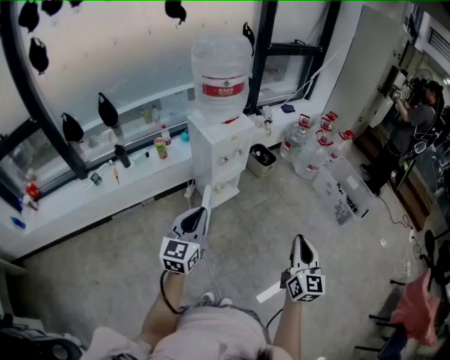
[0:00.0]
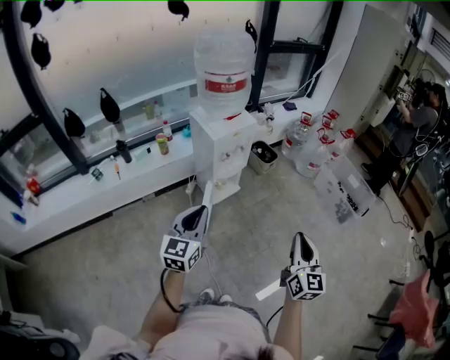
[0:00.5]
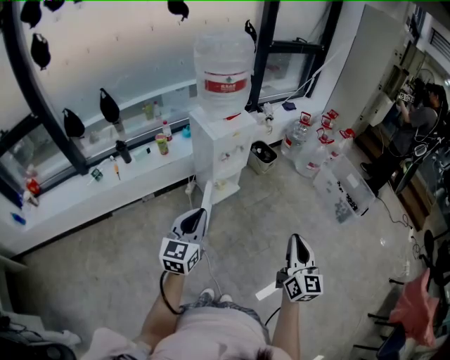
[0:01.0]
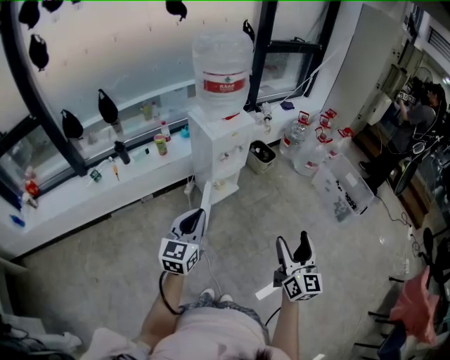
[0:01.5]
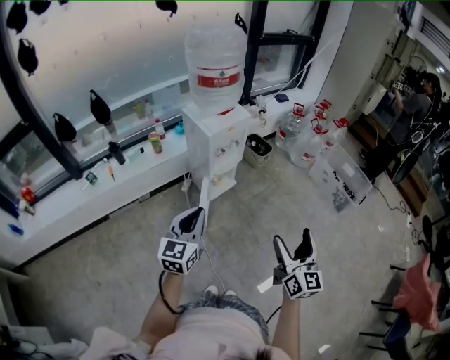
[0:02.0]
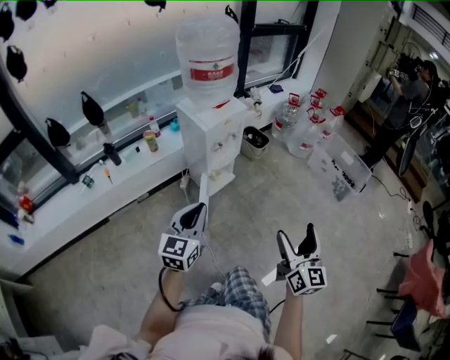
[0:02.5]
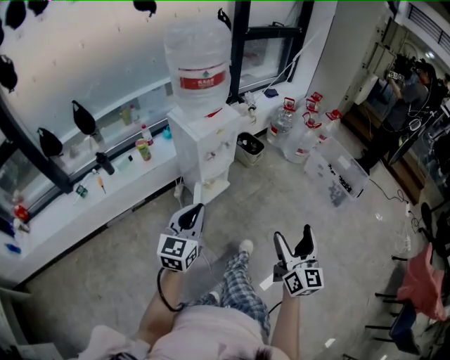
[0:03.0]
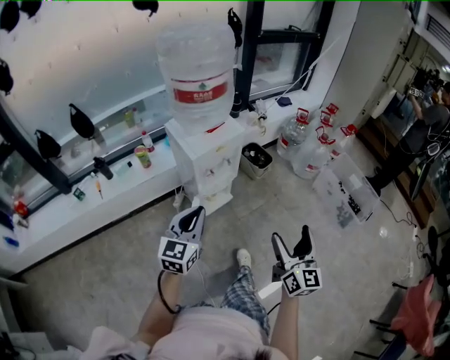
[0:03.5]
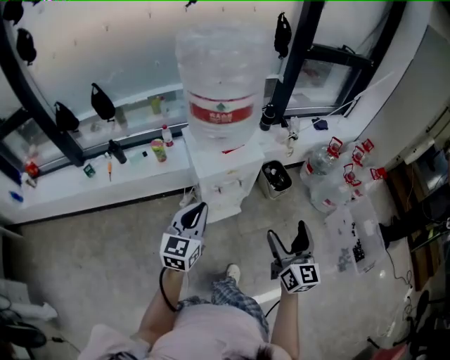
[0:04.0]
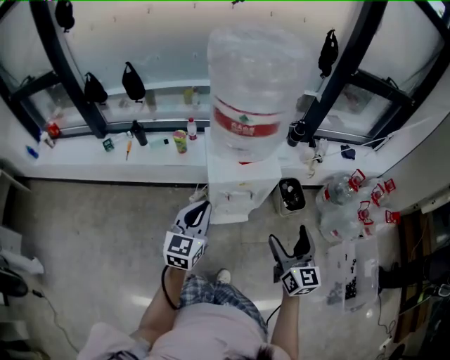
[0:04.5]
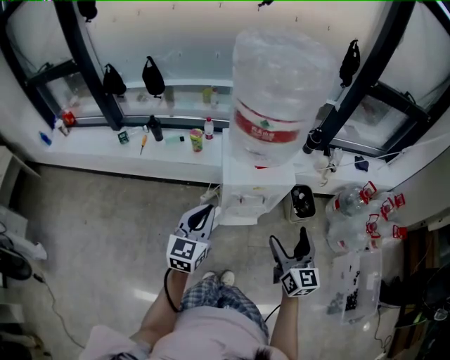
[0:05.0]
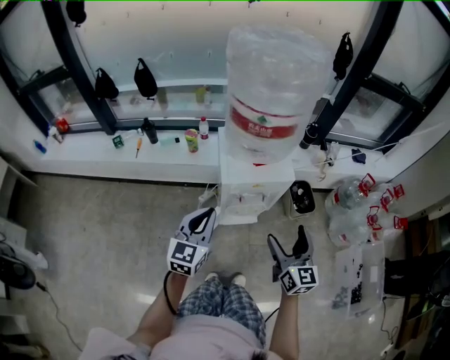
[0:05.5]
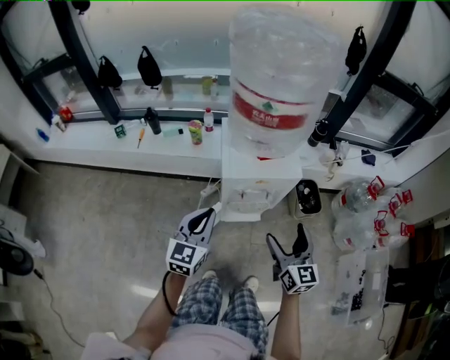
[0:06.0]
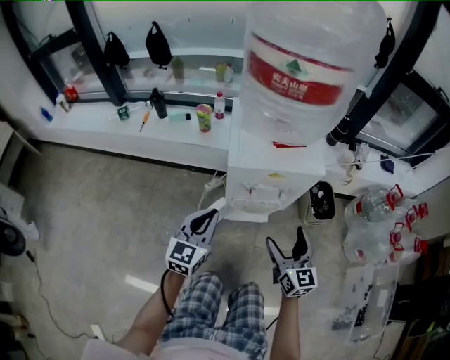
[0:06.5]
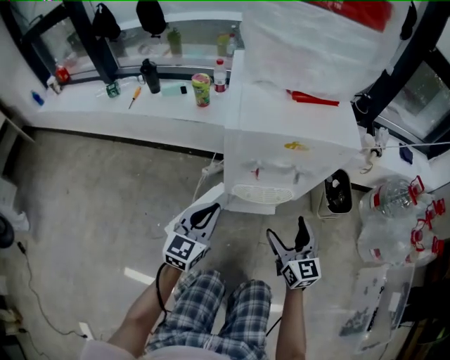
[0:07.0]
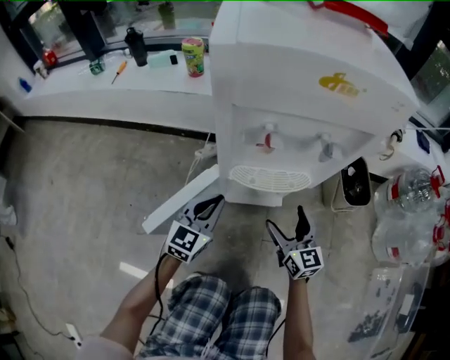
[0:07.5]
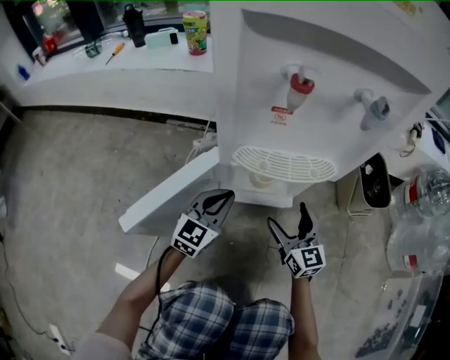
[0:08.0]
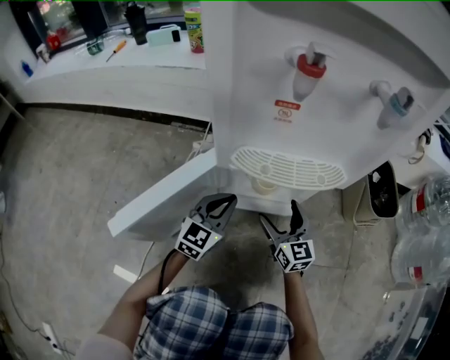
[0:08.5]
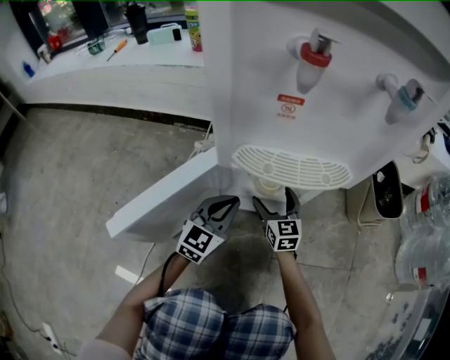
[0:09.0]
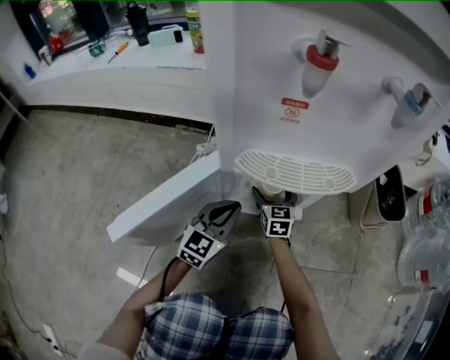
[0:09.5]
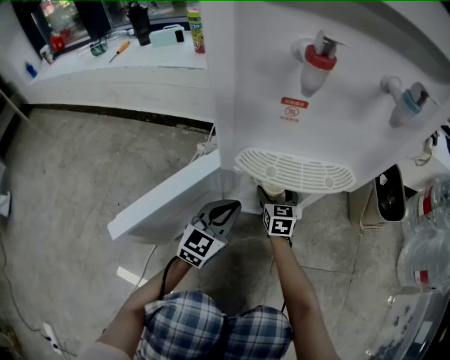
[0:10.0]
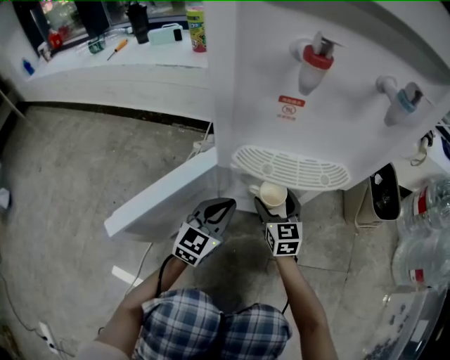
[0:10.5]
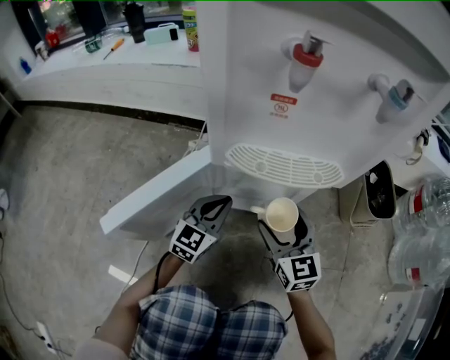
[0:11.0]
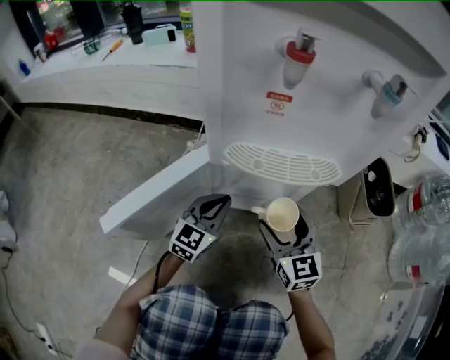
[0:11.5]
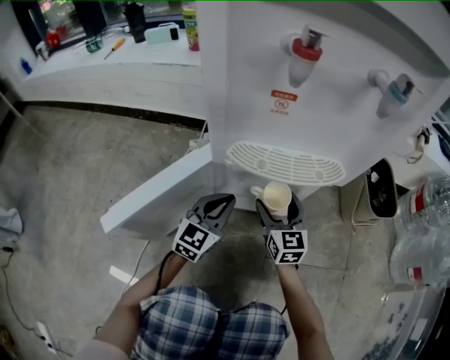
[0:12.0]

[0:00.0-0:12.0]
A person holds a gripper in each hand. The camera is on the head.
0:00.0 to 0:02.0: The right gripper changes place by about 5 cm, and opens its fingers.
0:02.0 to 0:04.0: Both grippers travel together forward, some 40 cm. The right gripper rotates about 20 degrees.
0:04.0 to 0:06.0: The right gripper travels forward and downward by roughly 15 cm, and changes its angle by some 20 degrees; the left gripper is displaced downward by roughly 10 cm.
0:06.0 to 0:08.0: The grippers both shift downward by roughly 60 cm.
0:08.0 to 0:10.0: The left gripper travels downward by roughly 5 cm, while the right gripper shifts roughly 20 cm forward, downward and to the left.
0:10.0 to 0:12.0: The right gripper is displaced upward and backward by roughly 10 cm.

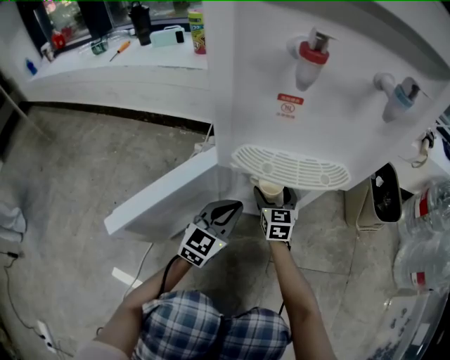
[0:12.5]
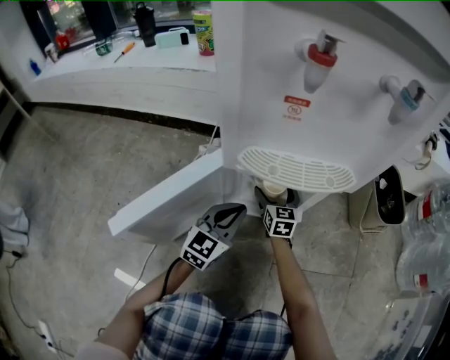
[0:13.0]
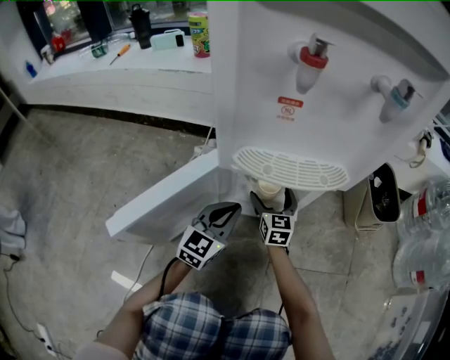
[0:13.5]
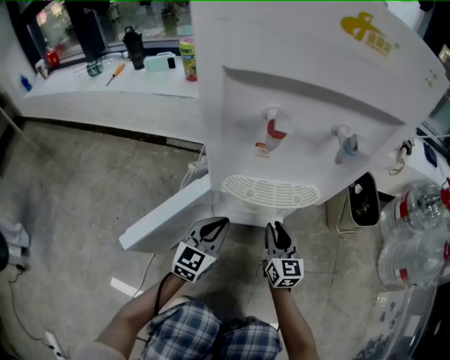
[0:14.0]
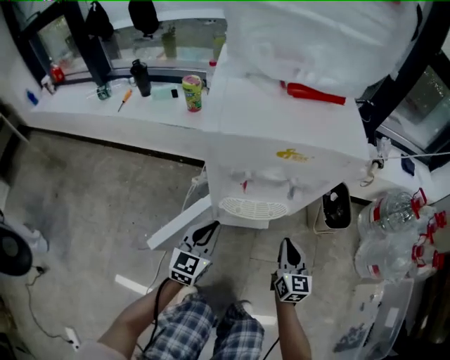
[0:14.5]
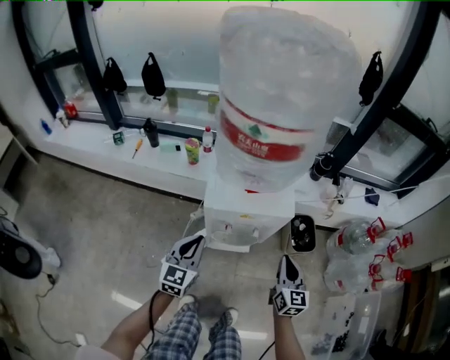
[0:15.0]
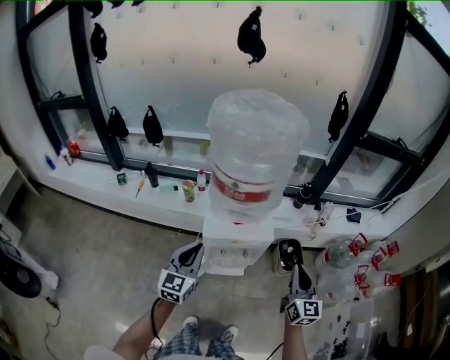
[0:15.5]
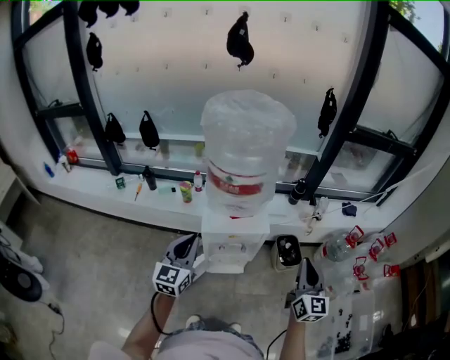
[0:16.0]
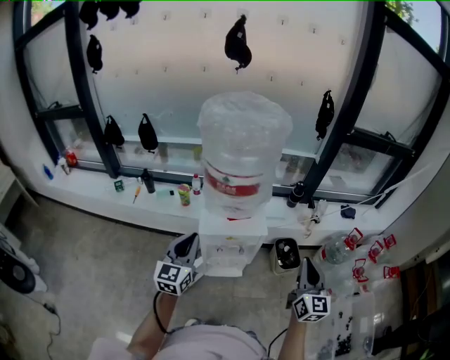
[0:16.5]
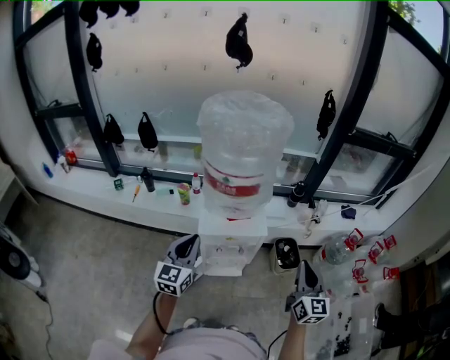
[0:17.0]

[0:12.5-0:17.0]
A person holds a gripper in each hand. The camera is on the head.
0:12.5 to 0:14.5: The left gripper shifts about 30 cm upward. The right gripper is displaced upward and backward by approximately 35 cm, and closes up.
0:14.5 to 0:17.0: Both grippers move upward, roughly 60 cm.

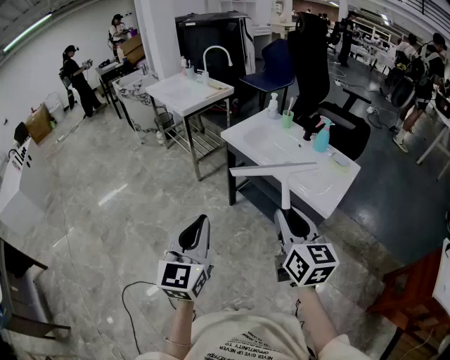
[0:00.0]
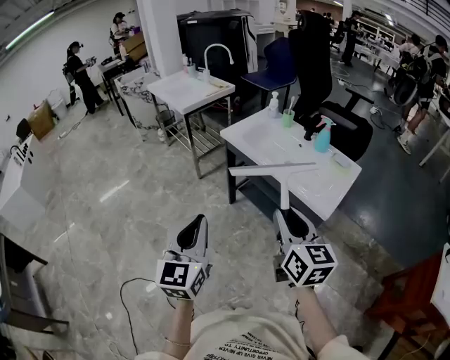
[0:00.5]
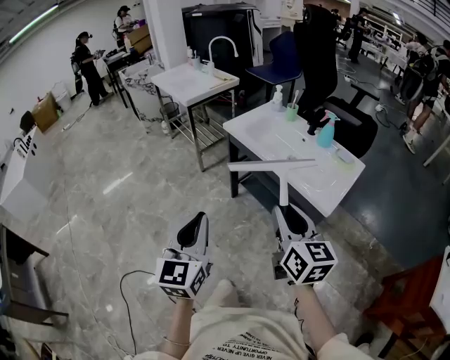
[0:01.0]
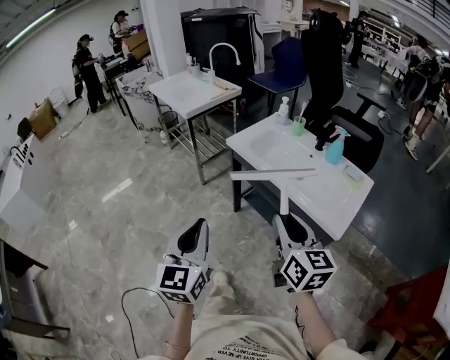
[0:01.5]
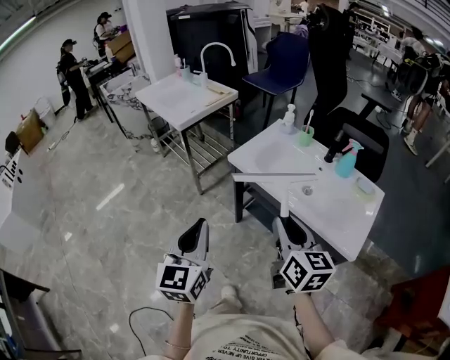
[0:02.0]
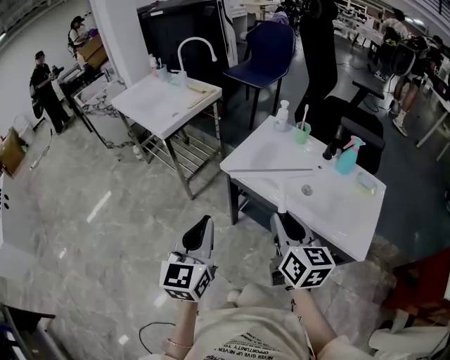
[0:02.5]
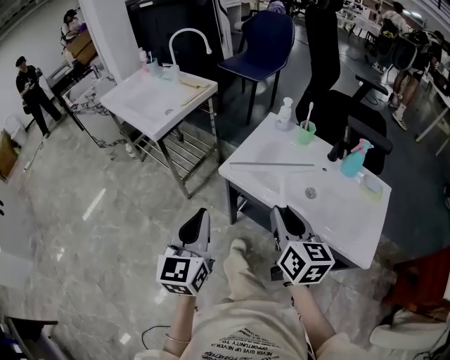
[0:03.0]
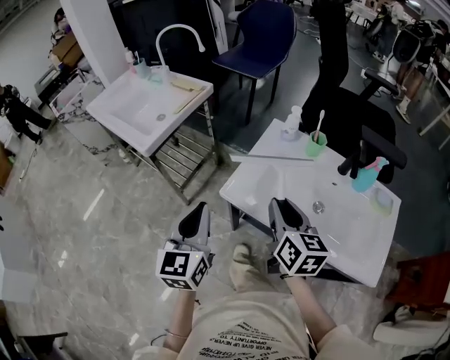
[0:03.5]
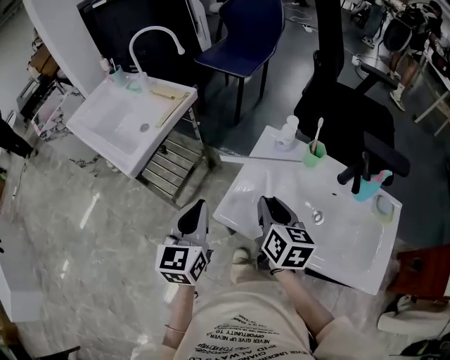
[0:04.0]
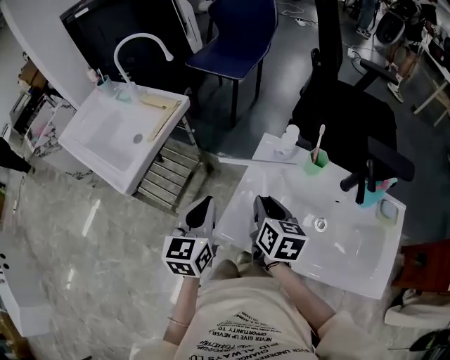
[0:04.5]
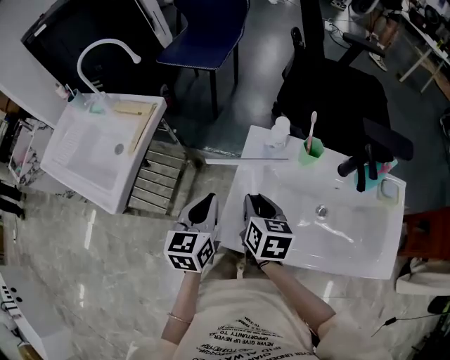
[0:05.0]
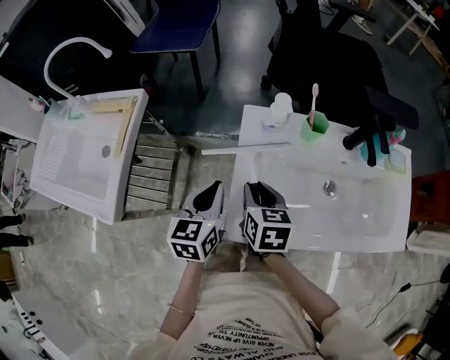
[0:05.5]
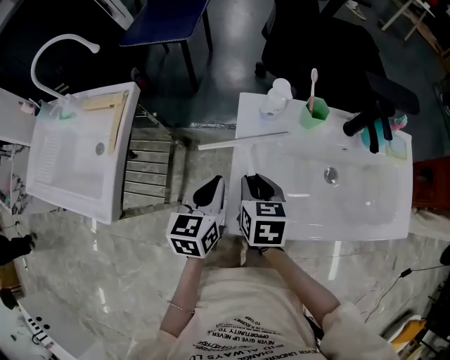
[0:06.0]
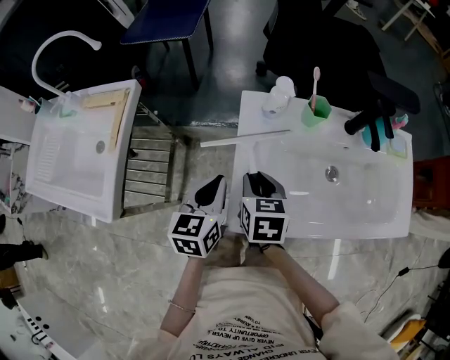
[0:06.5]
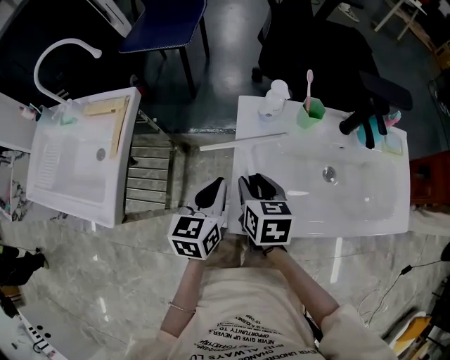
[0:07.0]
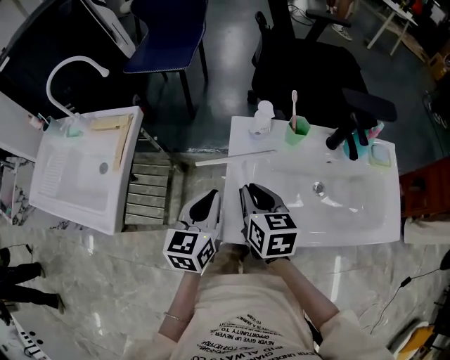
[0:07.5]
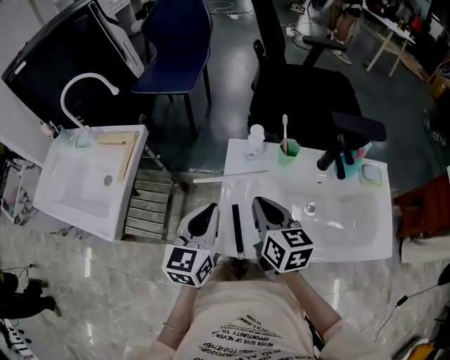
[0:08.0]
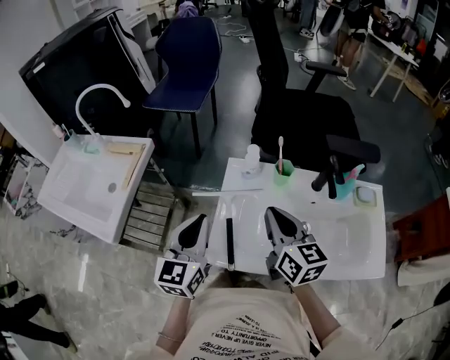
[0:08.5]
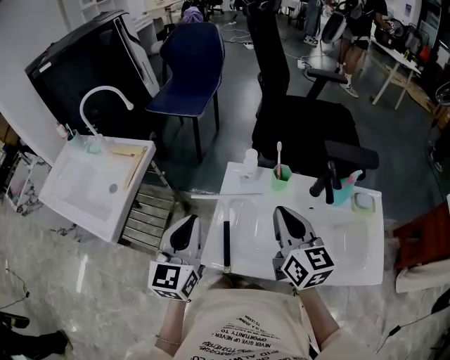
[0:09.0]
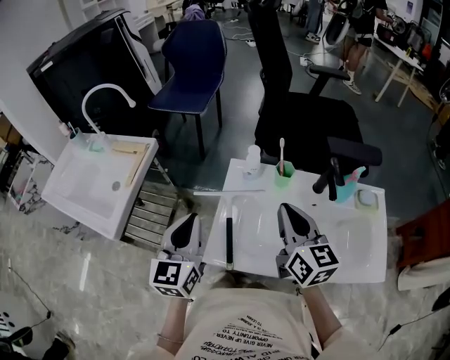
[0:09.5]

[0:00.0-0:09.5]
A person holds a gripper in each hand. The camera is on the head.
0:00.0 to 0:02.0: Both grippers travel together forward, roughly 20 cm.
0:02.0 to 0:04.0: Both grippers travel together forward, about 35 cm. The right gripper rotates about 20 degrees.
0:04.0 to 0:05.5: The right gripper moves downward and forward, approximately 10 cm, and turns by approximately 20 degrees, while the left gripper moves forward and downward, approximately 15 cm, and changes its angle by some 30 degrees.
0:05.5 to 0:07.5: The right gripper shifts approximately 5 cm upward.
0:07.5 to 0:09.5: The right gripper is displaced to the right and upward by roughly 15 cm, and rotates roughly 20 degrees; the left gripper heads upward, covering about 10 cm, and changes its angle by roughly 20 degrees.

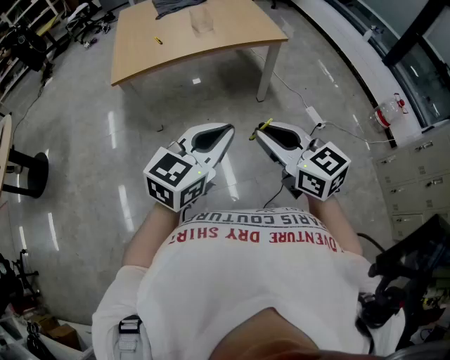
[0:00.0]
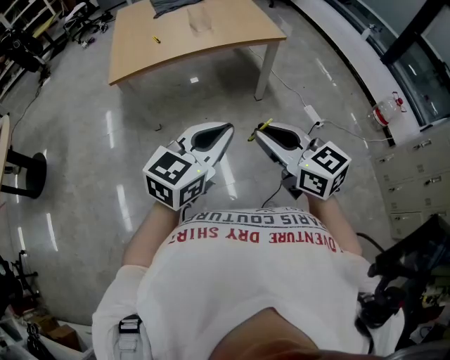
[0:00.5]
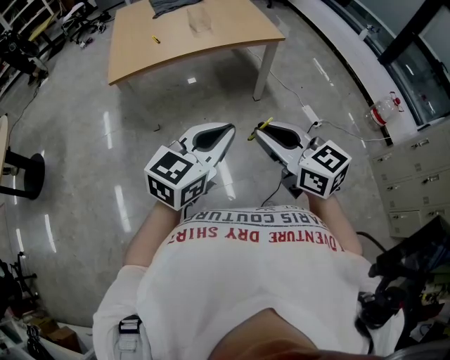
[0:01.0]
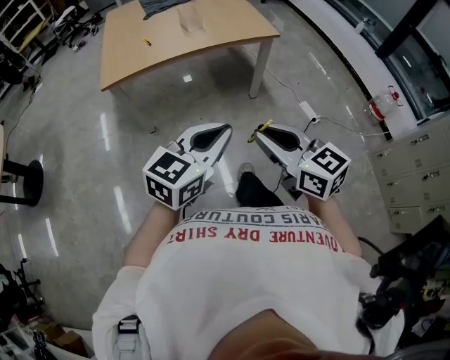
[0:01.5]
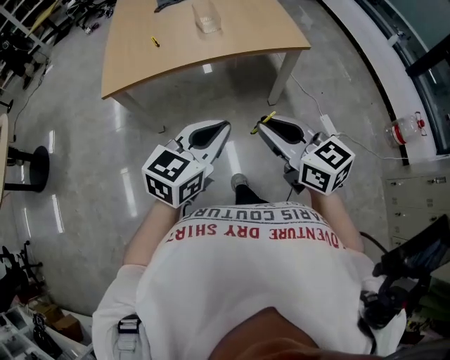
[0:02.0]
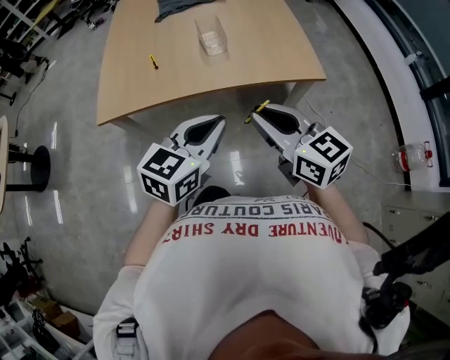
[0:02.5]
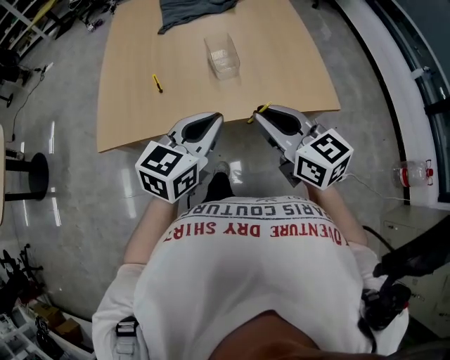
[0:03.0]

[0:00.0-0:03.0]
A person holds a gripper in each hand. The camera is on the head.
0:00.0 to 0:01.5: The grippers move only a little.
0:01.5 to 0:03.0: Both grippers are carried forward, approximately 60 cm.
